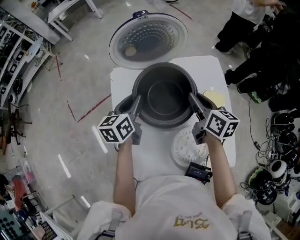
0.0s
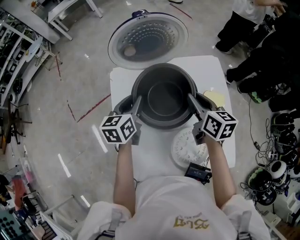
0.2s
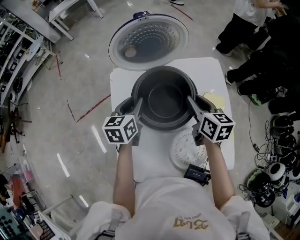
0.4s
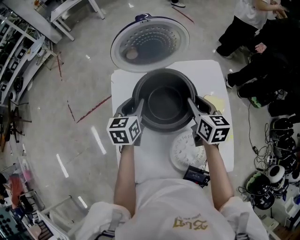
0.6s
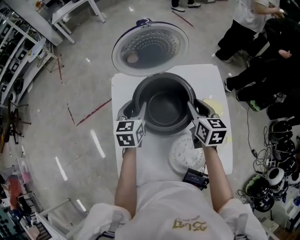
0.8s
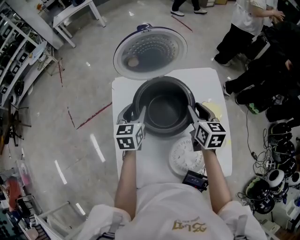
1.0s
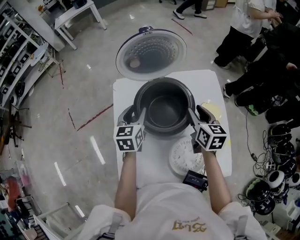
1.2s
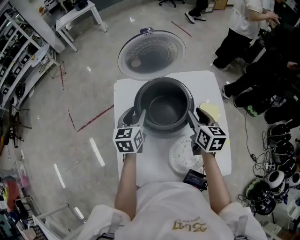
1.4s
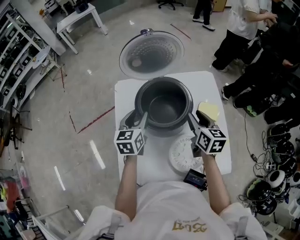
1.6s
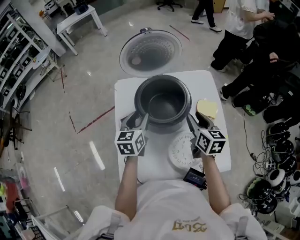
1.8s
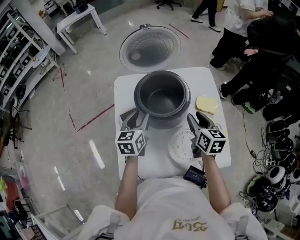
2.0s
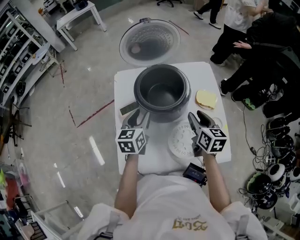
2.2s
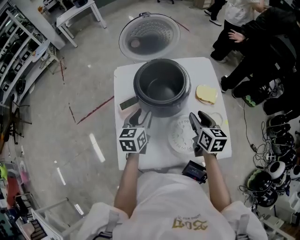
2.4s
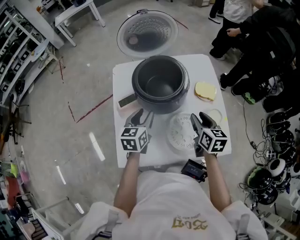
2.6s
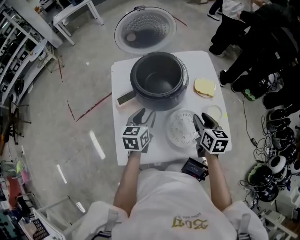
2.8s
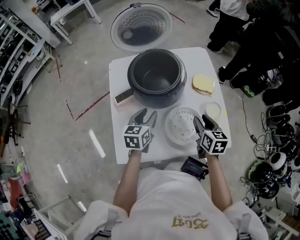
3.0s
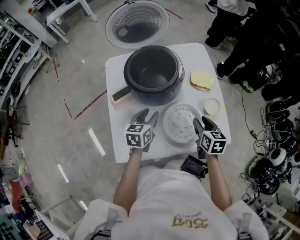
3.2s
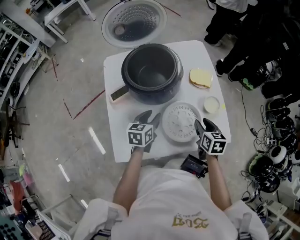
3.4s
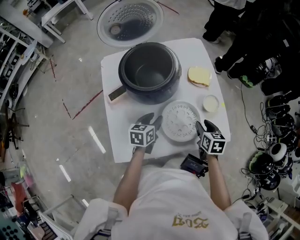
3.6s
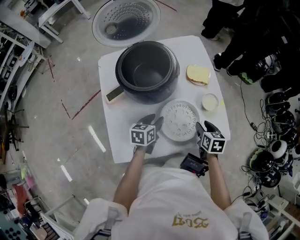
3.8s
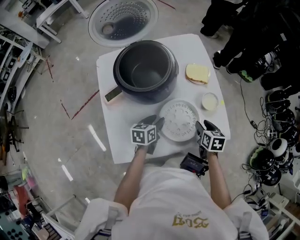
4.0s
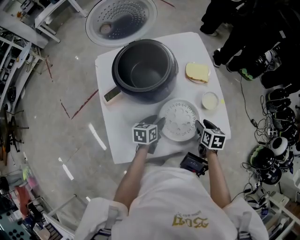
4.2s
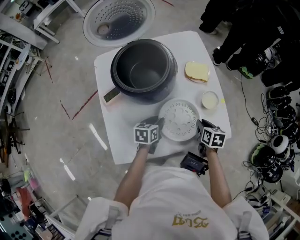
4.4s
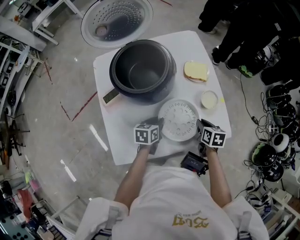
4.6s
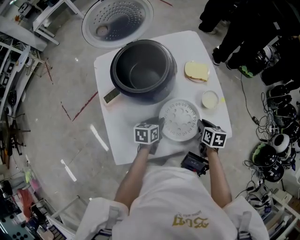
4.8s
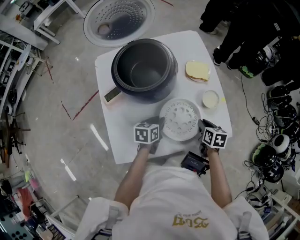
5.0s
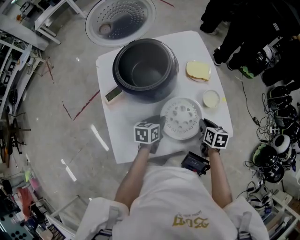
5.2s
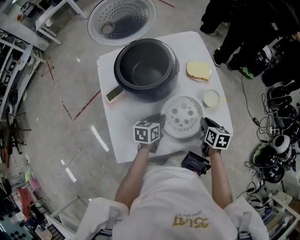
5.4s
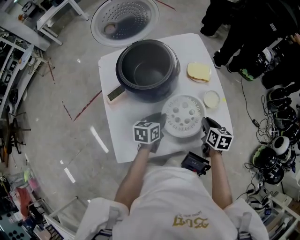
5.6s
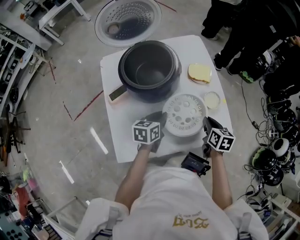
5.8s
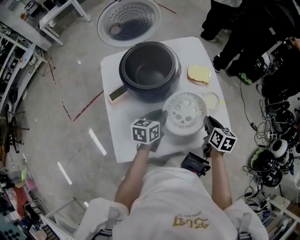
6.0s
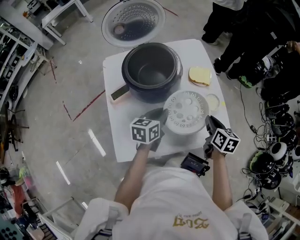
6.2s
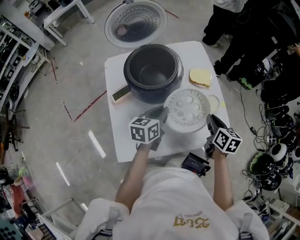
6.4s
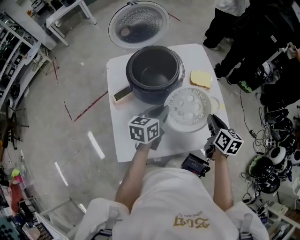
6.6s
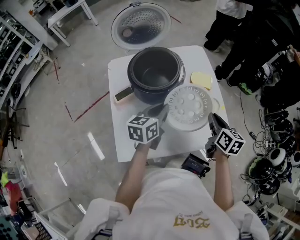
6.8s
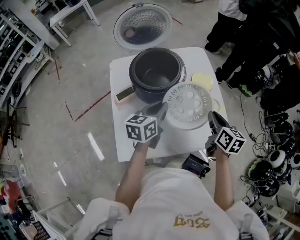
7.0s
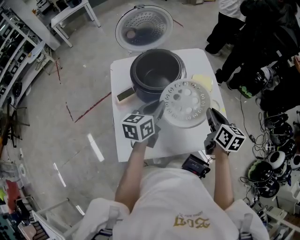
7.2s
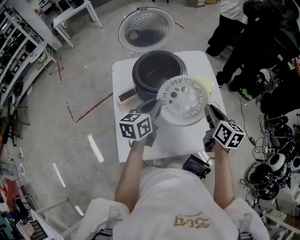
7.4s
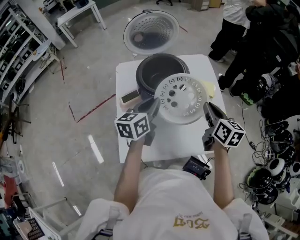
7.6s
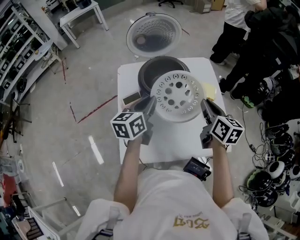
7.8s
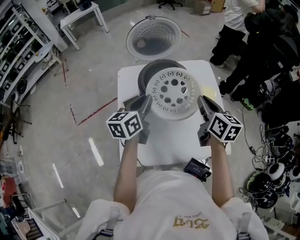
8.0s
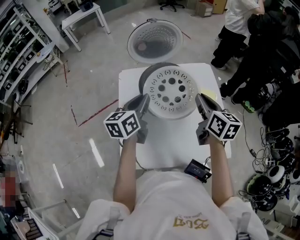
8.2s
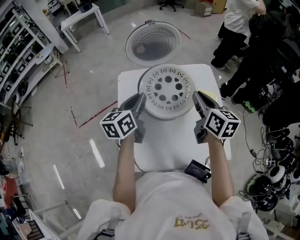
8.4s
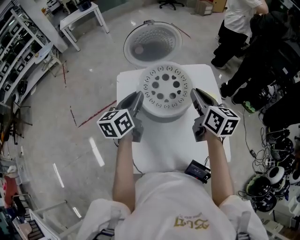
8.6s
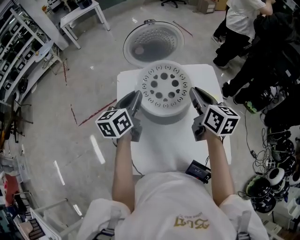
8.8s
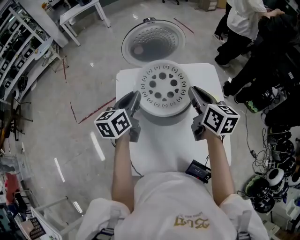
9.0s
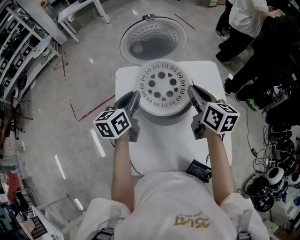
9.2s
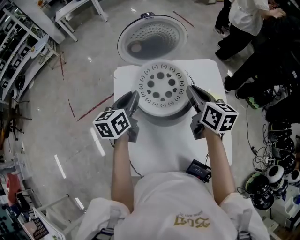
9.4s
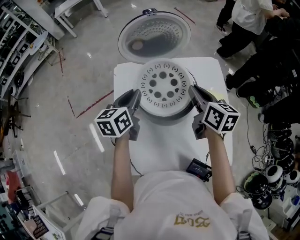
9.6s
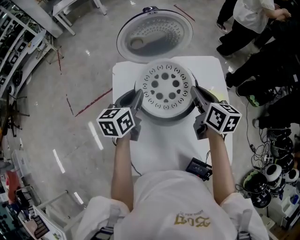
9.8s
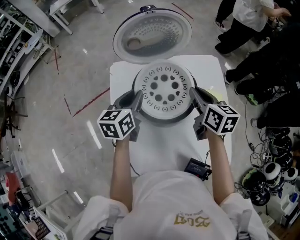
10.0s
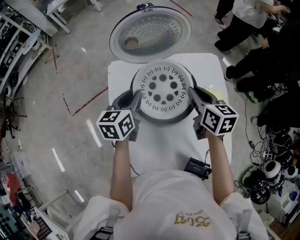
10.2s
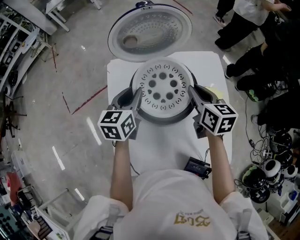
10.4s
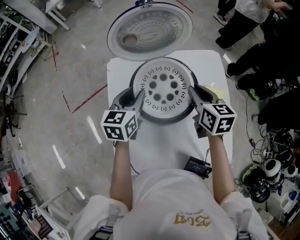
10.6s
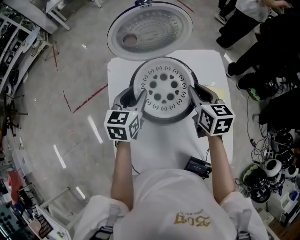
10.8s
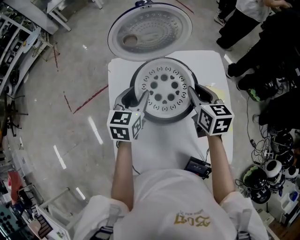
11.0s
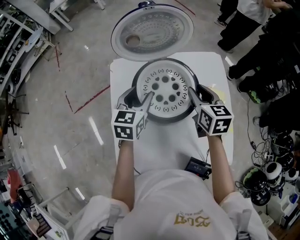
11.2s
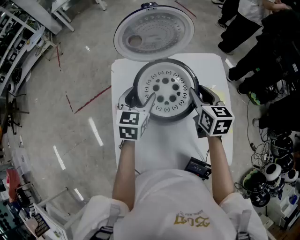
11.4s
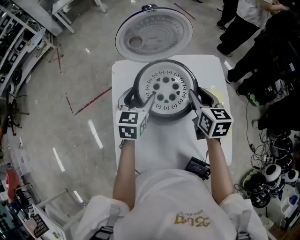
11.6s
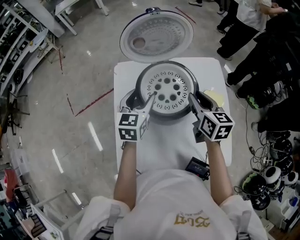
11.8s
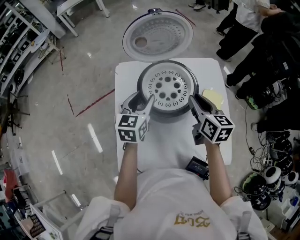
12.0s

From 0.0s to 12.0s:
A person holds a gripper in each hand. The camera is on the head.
From 0.0s to 1.6s: The two grippers go about 5 cm backward.
From 1.6s to 3.0s: The right gripper shifts some 15 cm backward and downward. The left gripper moves backward, downward and to the right, some 15 cm.
From 3.0s to 4.4s: Both grippers travel together downward and to the right, roughly 15 cm. The right gripper rotates roughly 20 degrees. The left gripper swivels approximately 20 degrees.
From 4.4s to 6.0s: The grippers both shift upward by about 10 cm.
From 6.0s to 7.6s: The grippers both shift upward and to the left by roughly 15 cm. The left gripper swivels approximately 20 degrees, while the right gripper swivels approximately 20 degrees.
From 7.6s to 9.0s: The grippers both shift forward and to the left by approximately 15 cm.
From 9.0s to 10.4s: Both grippers move downward and forward, roughly 10 cm.
From 10.4s to 12.0s: Both grippers move backward, approximately 5 cm. The left gripper opens up.

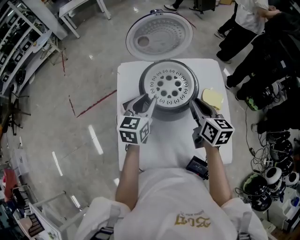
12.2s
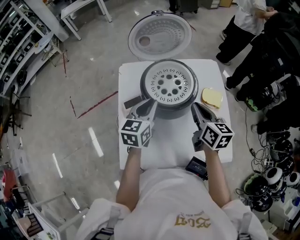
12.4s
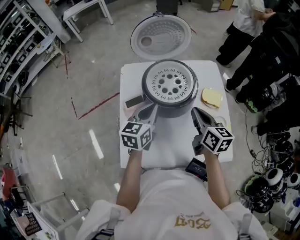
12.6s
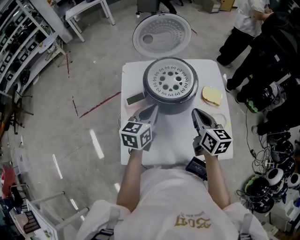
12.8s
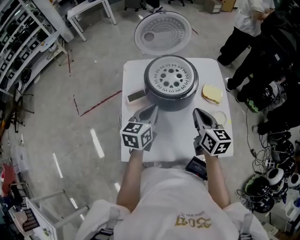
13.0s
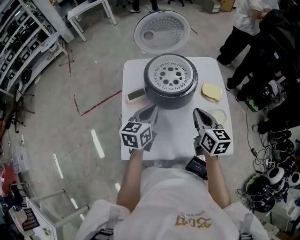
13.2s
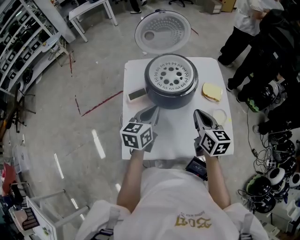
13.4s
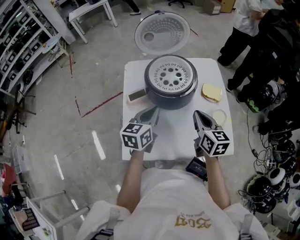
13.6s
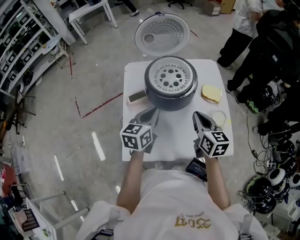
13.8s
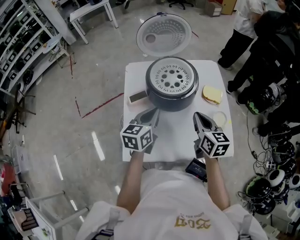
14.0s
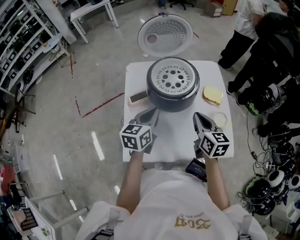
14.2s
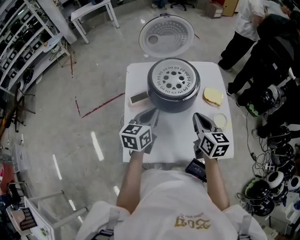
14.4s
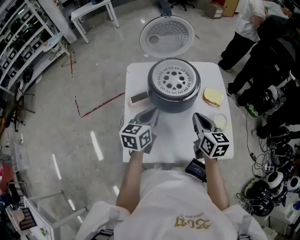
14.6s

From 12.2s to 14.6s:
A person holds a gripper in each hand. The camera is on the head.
From 12.2s to 13.4s: The grippers both shift backward by roughly 10 cm. The left gripper closes its fingers.
From 13.4s to 14.6s: There are only small adjustments of the grippers.

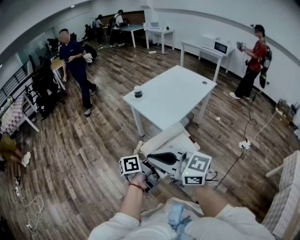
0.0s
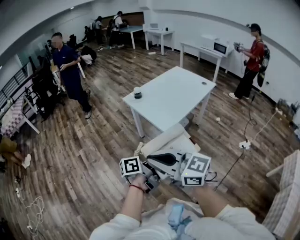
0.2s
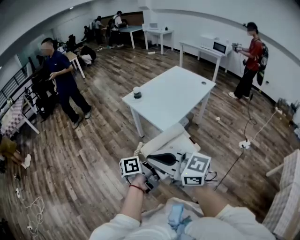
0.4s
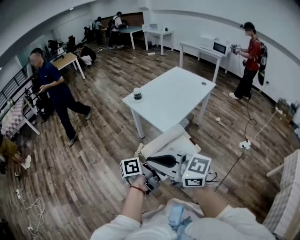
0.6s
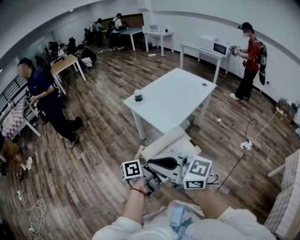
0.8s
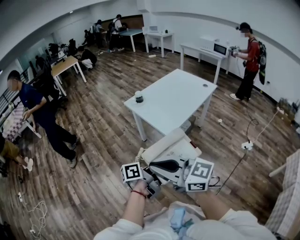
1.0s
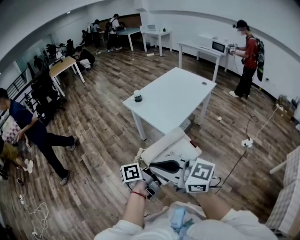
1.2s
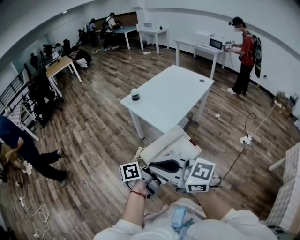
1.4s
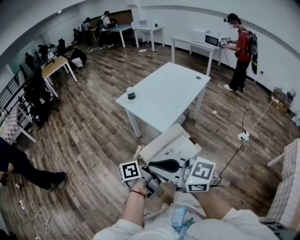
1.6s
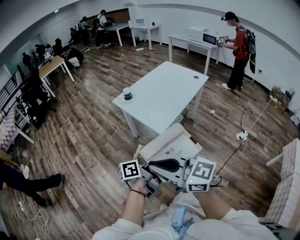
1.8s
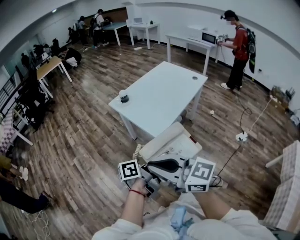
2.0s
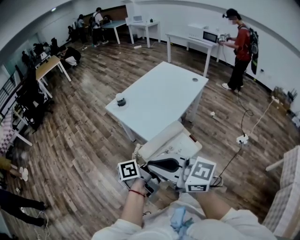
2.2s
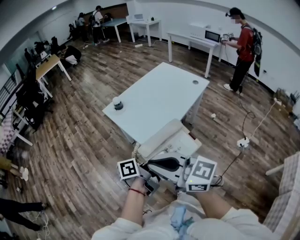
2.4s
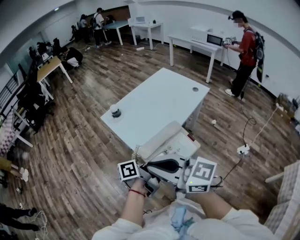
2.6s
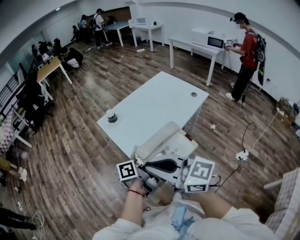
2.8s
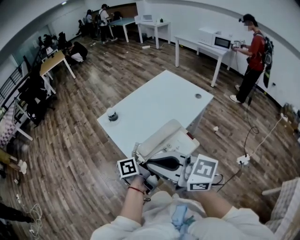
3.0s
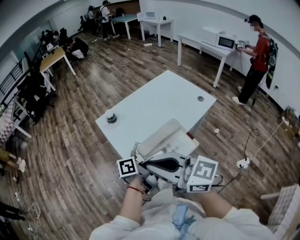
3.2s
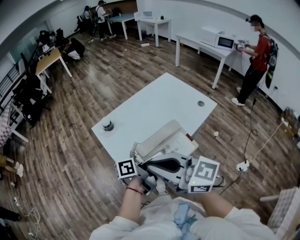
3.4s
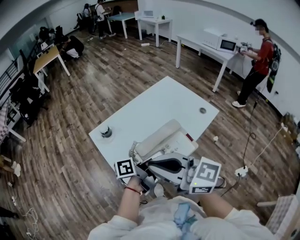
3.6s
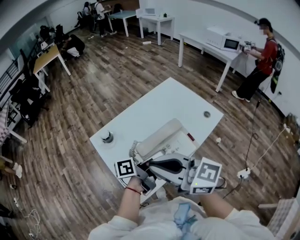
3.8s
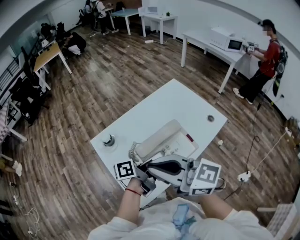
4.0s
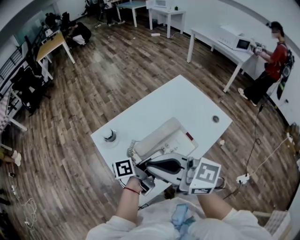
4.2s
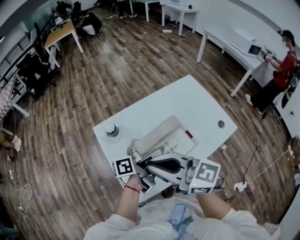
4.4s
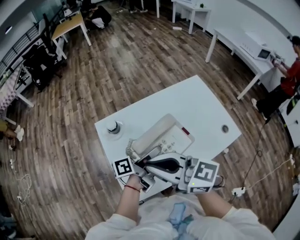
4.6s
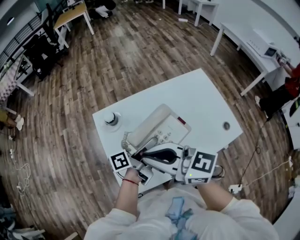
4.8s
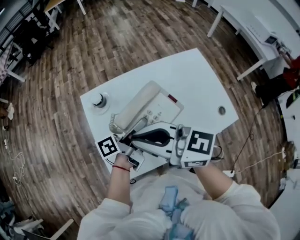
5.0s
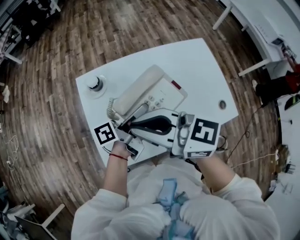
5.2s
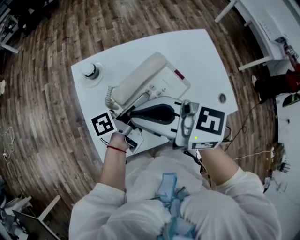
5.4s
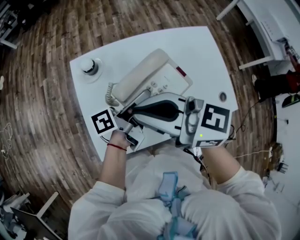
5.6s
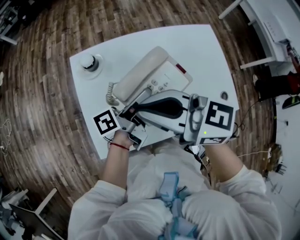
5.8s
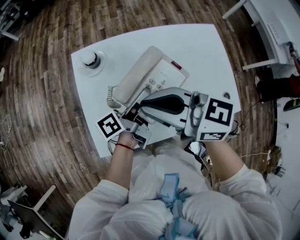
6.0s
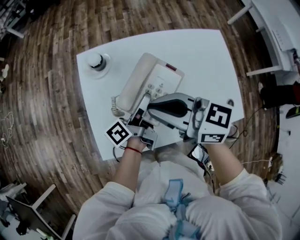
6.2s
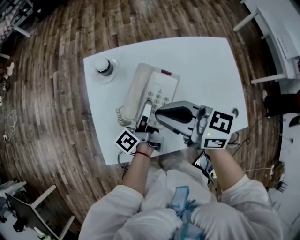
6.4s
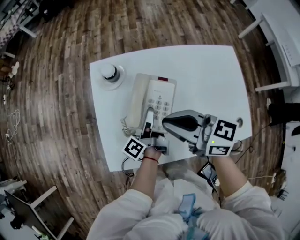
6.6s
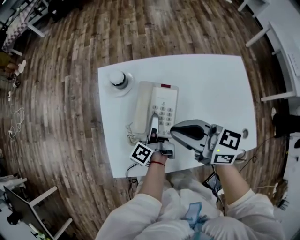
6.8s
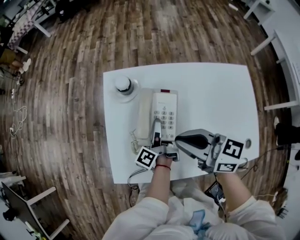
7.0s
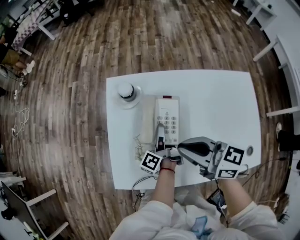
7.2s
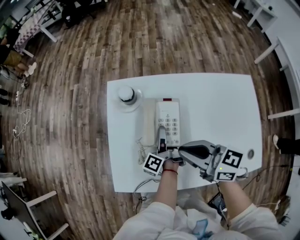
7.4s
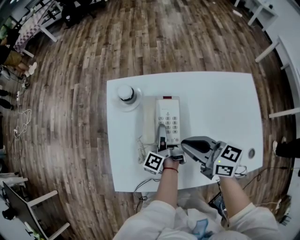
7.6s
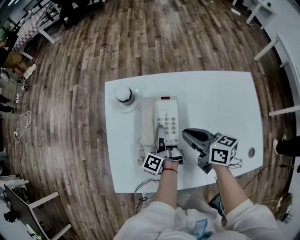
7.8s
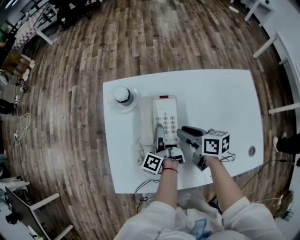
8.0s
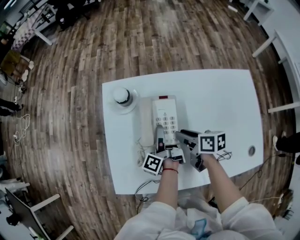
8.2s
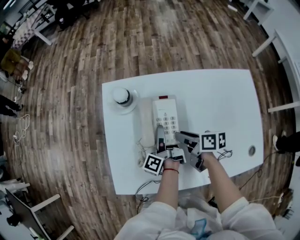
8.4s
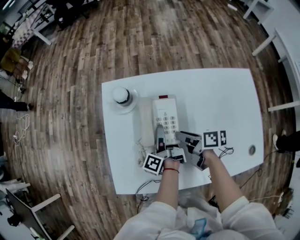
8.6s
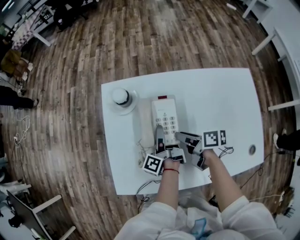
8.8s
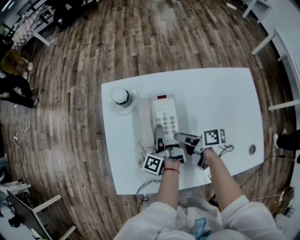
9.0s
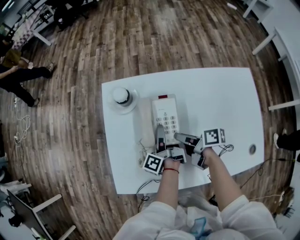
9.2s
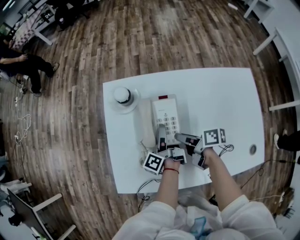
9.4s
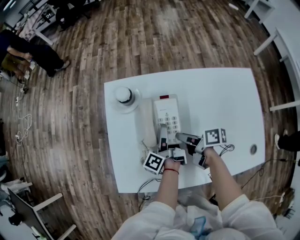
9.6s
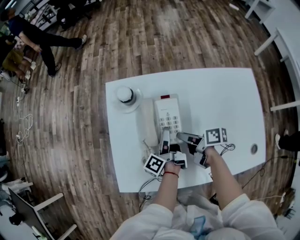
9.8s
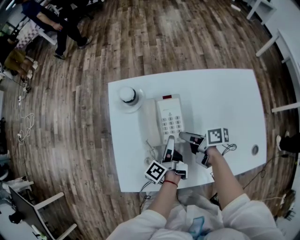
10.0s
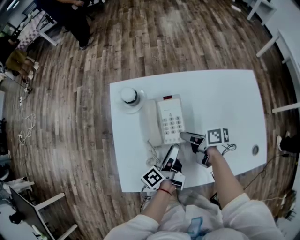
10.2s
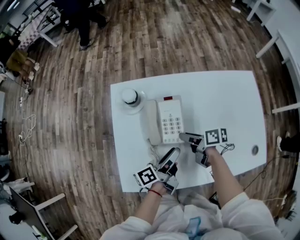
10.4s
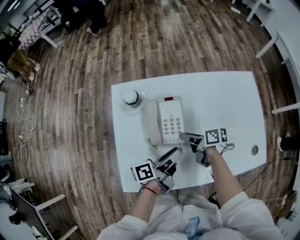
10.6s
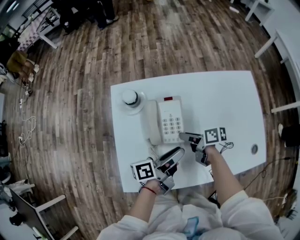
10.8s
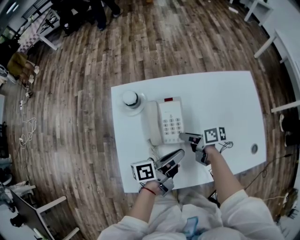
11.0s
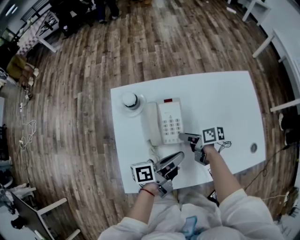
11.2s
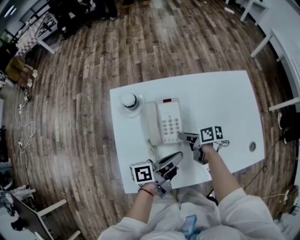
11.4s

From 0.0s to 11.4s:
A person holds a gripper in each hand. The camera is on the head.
From 1.4s to 2.8s: The right gripper moves approximately 30 cm.
From 2.8s to 4.2s: The right gripper shifts by approximately 30 cm.
From 4.2s to 5.6s: The right gripper shifts by about 10 cm, and swivels some 30 degrees.
From 5.6s to 7.2s: The right gripper goes roughly 15 cm downward.
From 7.2s to 8.6s: The right gripper shifts some 20 cm downward, rolls clockwise, seen from behind, by approximately 50 degrees, and opens up.
